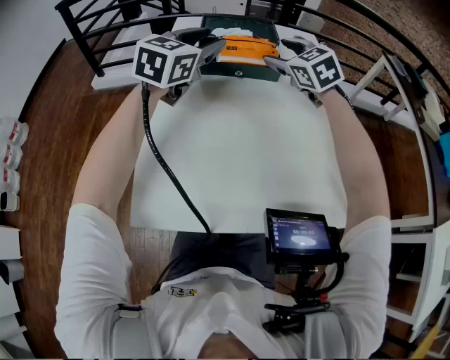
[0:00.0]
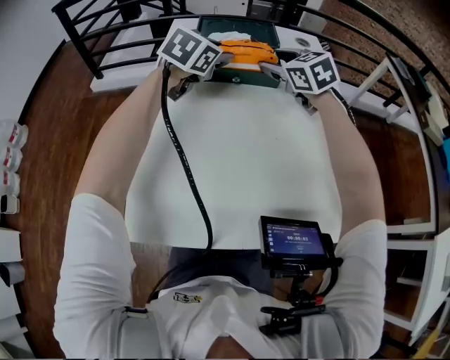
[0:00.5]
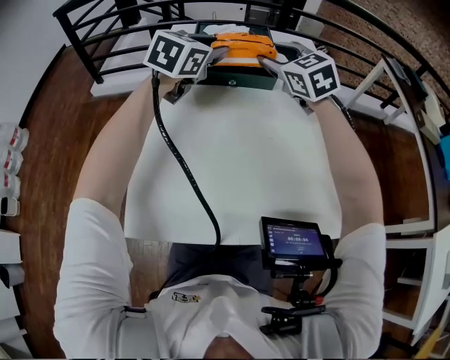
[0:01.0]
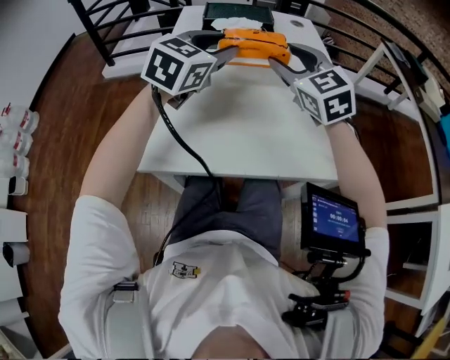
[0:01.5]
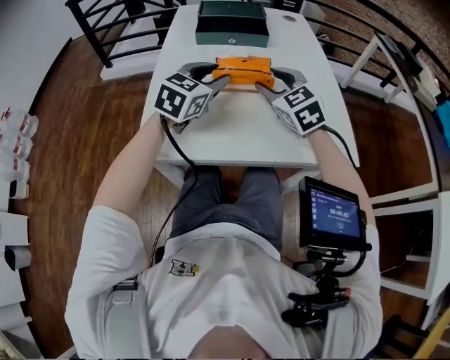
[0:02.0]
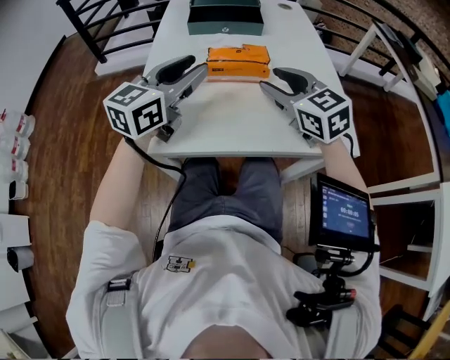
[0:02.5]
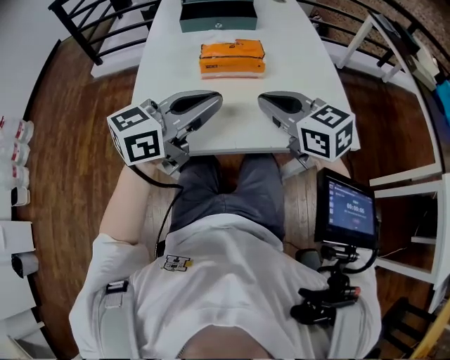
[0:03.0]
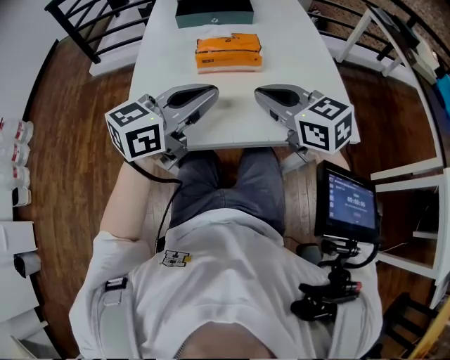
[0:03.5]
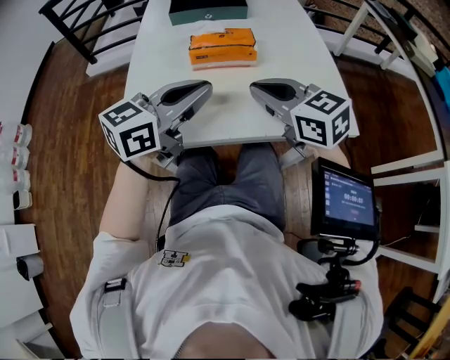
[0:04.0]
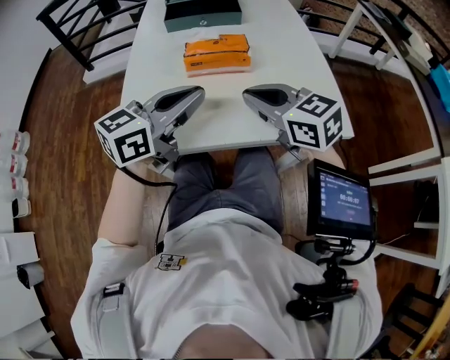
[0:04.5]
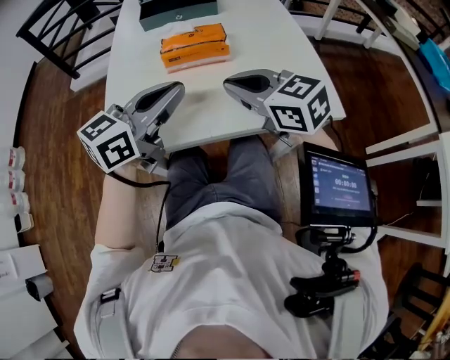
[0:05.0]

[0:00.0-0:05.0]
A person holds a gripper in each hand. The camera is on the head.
0:00.0 to 0:02.5: Both grippers travel together backward, about 25 cm. The right gripper closes.
0:02.5 to 0:05.0: The two grippers go roughly 5 cm backward. The right gripper closes up. The left gripper closes its fingers.

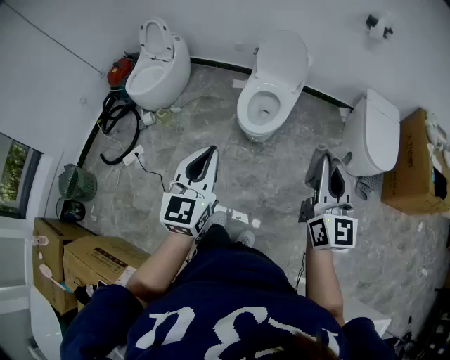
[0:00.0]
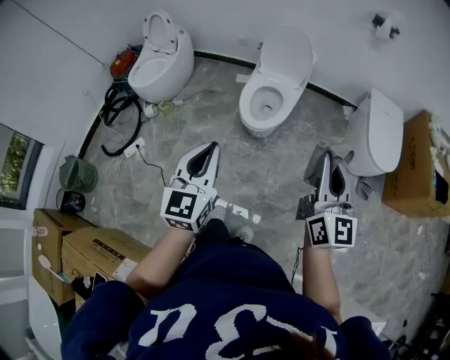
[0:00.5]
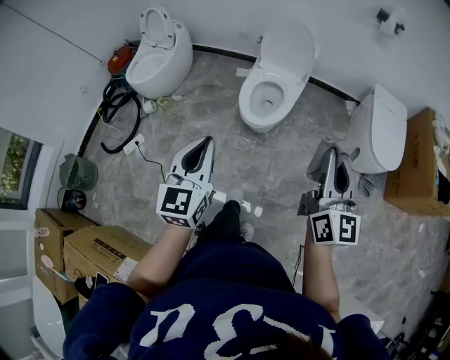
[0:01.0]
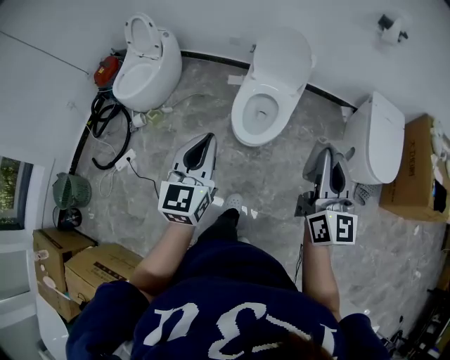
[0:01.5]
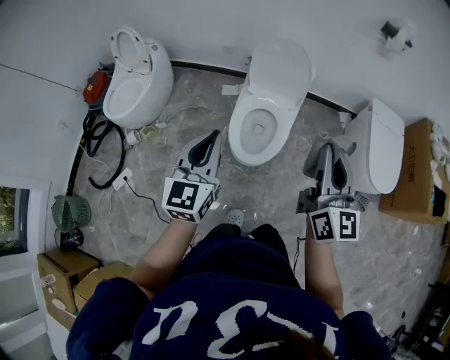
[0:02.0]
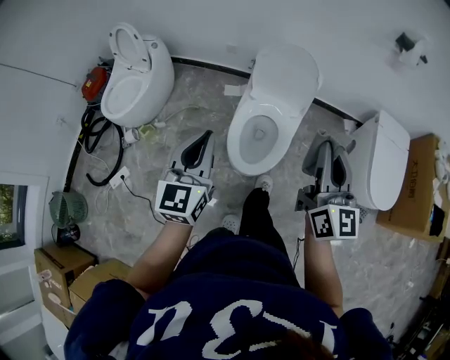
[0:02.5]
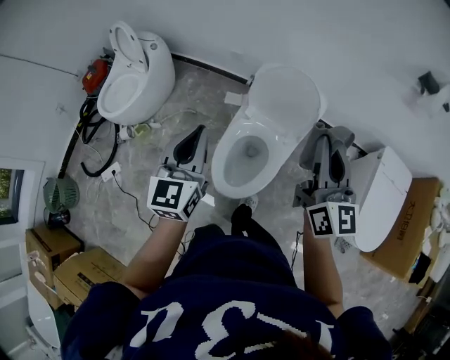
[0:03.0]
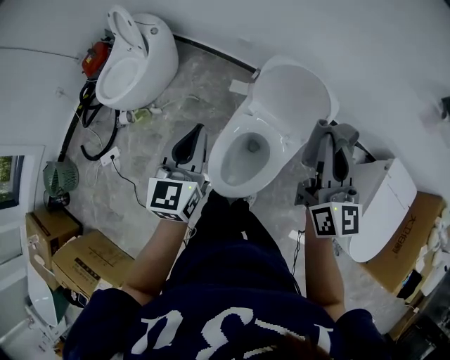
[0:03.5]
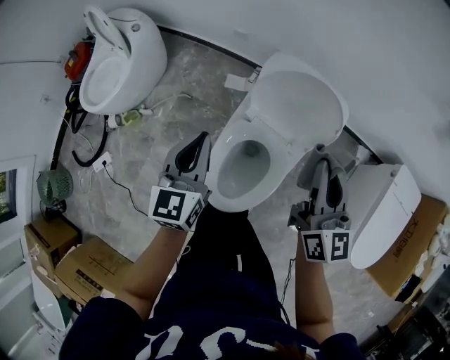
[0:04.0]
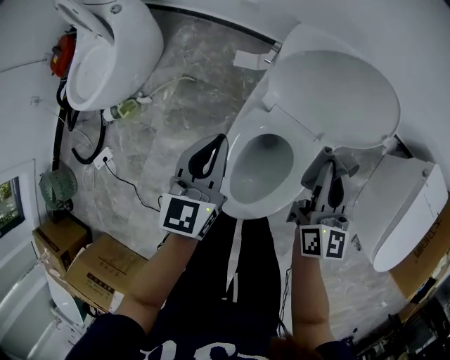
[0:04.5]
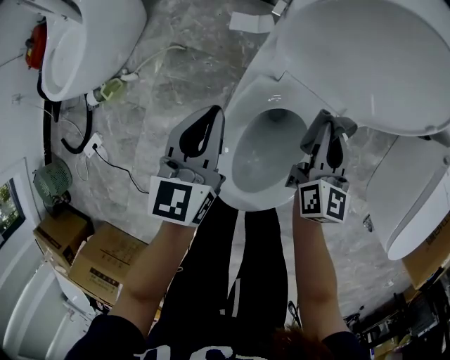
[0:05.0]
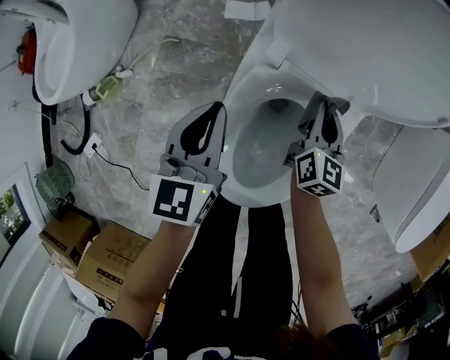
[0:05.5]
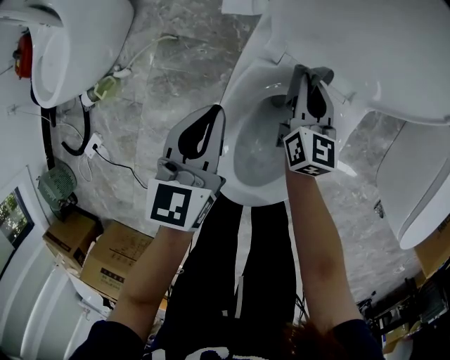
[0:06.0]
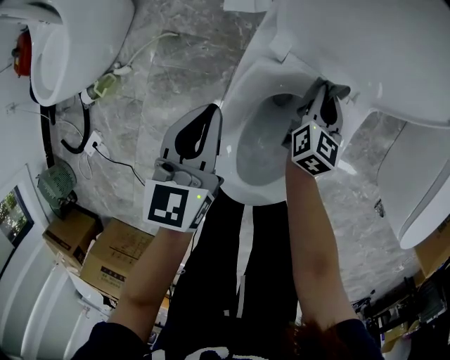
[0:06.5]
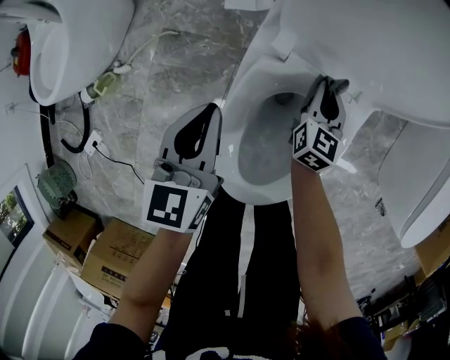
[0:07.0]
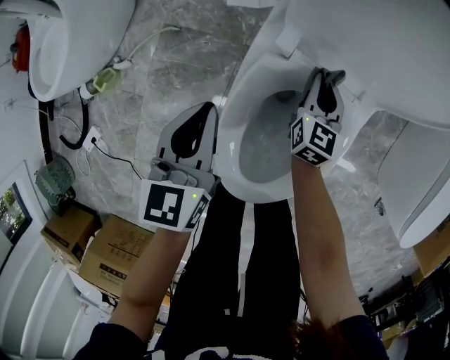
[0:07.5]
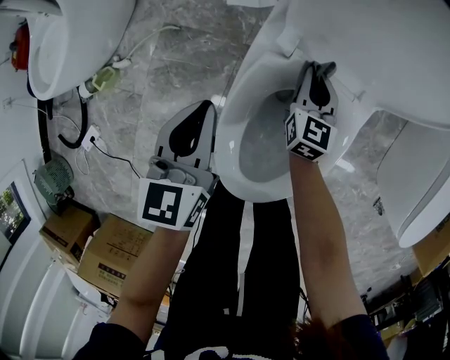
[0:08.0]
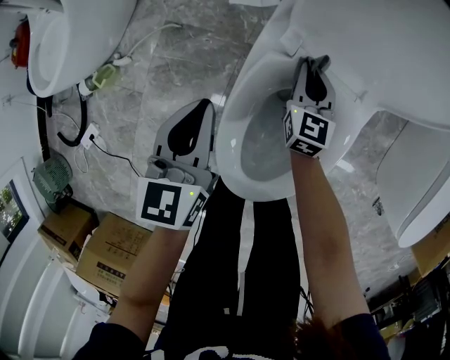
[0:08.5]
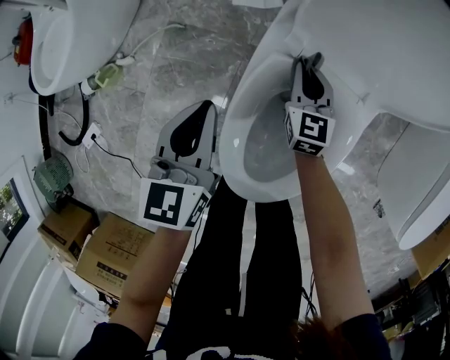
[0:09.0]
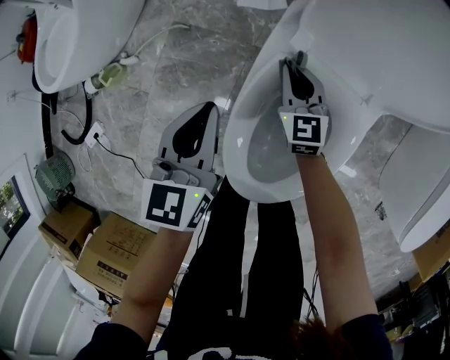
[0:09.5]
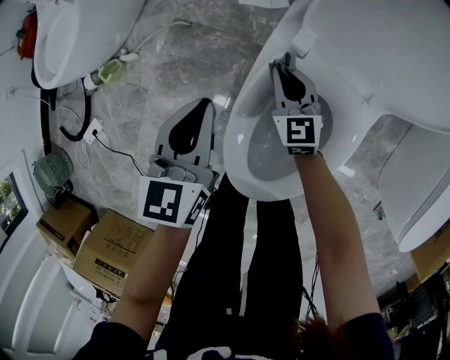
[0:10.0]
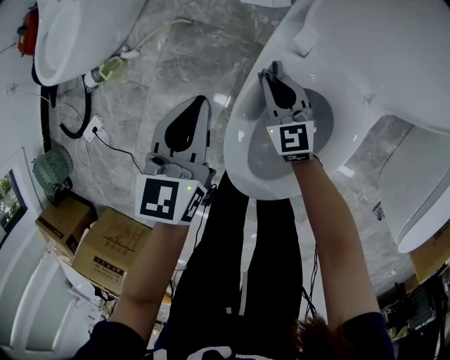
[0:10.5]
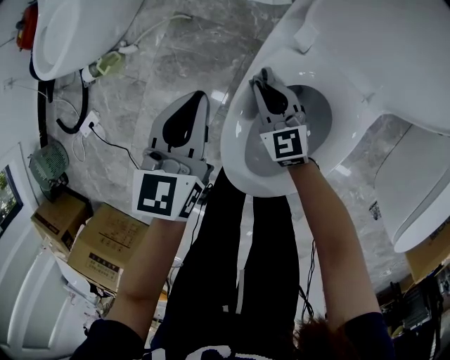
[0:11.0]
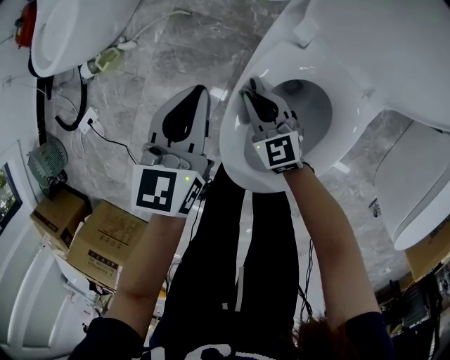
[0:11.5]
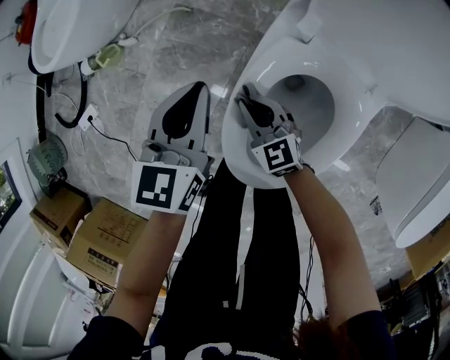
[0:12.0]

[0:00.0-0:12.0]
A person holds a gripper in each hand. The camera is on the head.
0:00.0 to 0:02.0: Both grippers move forward, approximately 35 cm.
0:02.0 to 0:04.0: The pair of grippers is taken forward, about 50 cm. The left gripper goes some 20 cm downward, and turns by roughly 20 degrees.
0:04.0 to 0:06.0: The grippers both shift downward by some 40 cm.
0:08.0 to 0:10.0: The right gripper goes roughly 10 cm to the left, and rotates approximately 30 degrees.
0:10.0 to 0:12.0: The right gripper moves backward and to the left, roughly 15 cm, and changes its angle by some 20 degrees.

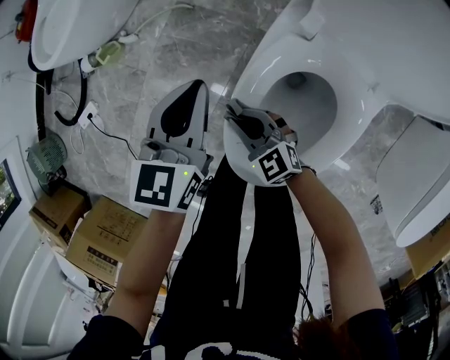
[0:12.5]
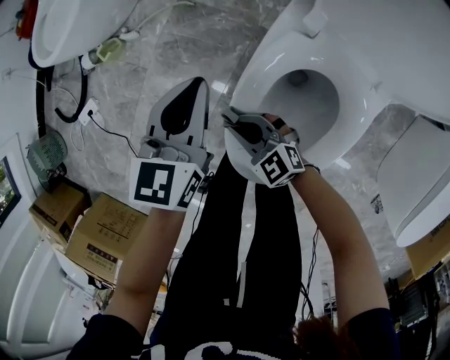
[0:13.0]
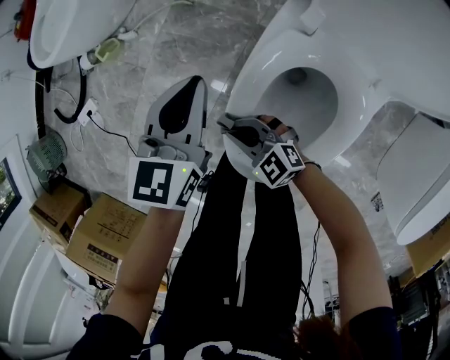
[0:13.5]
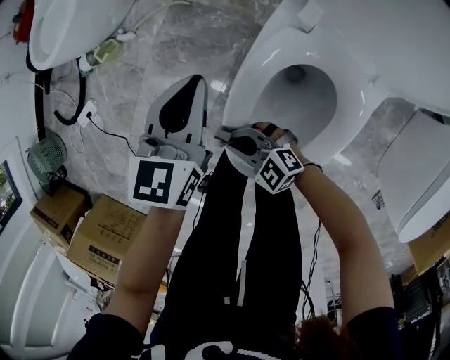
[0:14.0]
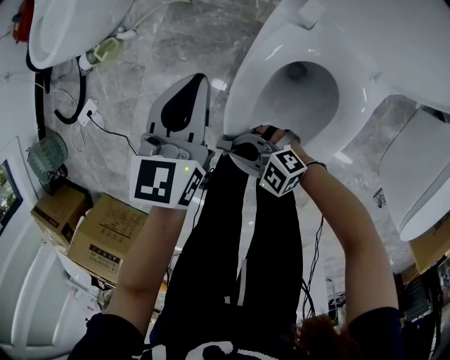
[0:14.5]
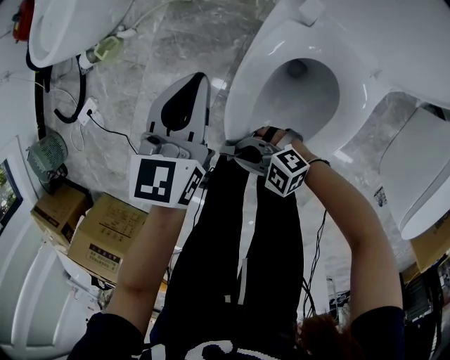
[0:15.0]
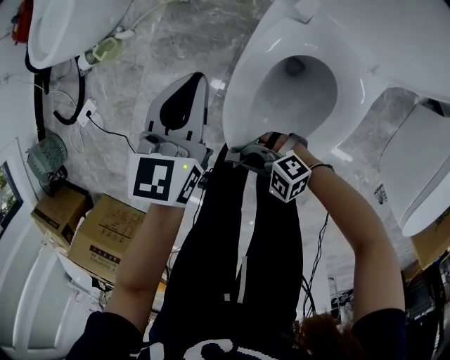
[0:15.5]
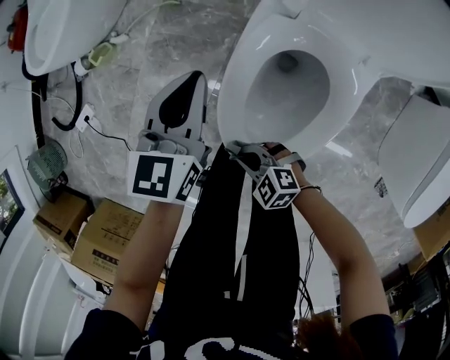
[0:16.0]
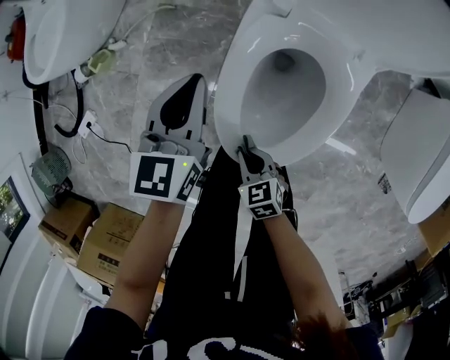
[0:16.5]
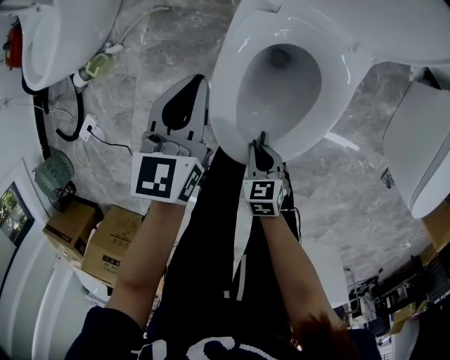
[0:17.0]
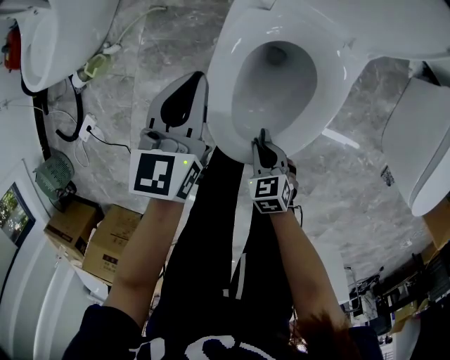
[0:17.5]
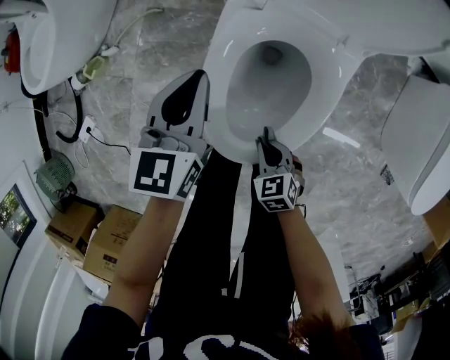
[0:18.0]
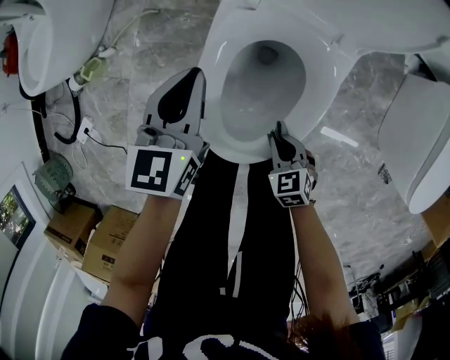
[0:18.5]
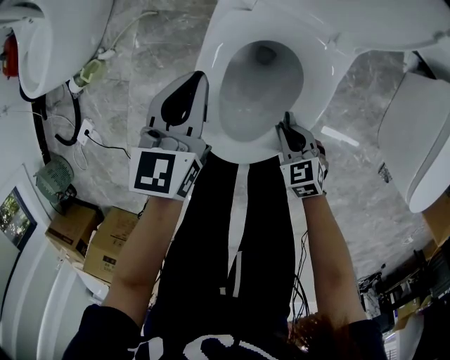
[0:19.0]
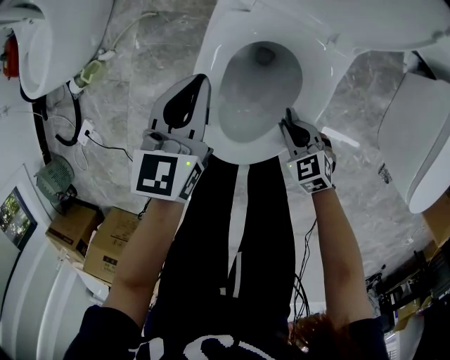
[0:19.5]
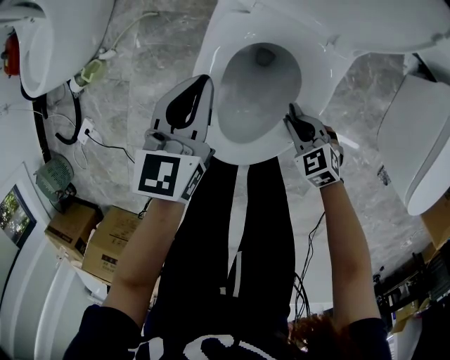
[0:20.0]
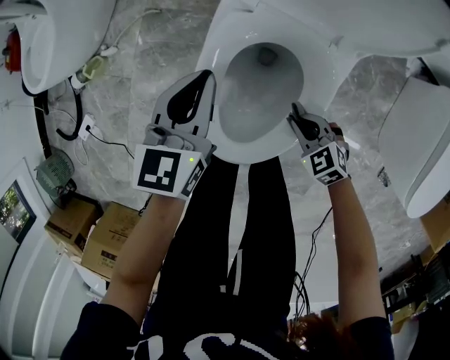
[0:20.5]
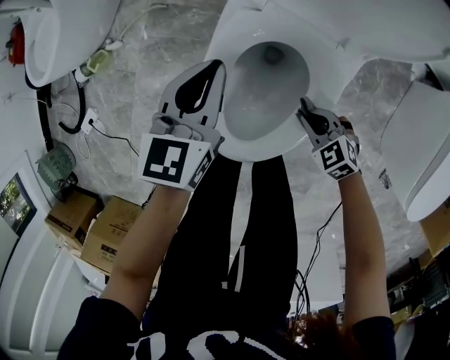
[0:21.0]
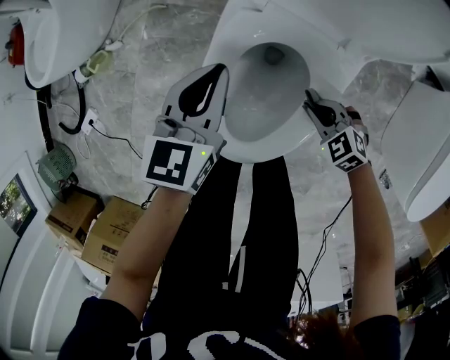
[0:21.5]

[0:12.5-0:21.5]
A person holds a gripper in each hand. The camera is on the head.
0:12.5 to 0:14.5: The right gripper is displaced backward and to the left by some 15 cm, and turns by roughly 30 degrees.
0:14.5 to 0:17.0: The left gripper shifts by some 5 cm. Meanwhile the right gripper shifts by some 10 cm, and tips its fingers downward by approximately 30 degrees.
0:17.0 to 0:19.5: The right gripper heads to the right, covering approximately 15 cm, and changes its angle by about 20 degrees. Meanwhile the left gripper is displaced to the right by some 5 cm.
0:19.5 to 0:21.5: The right gripper shifts about 5 cm to the right and forward, and swivels roughly 20 degrees.

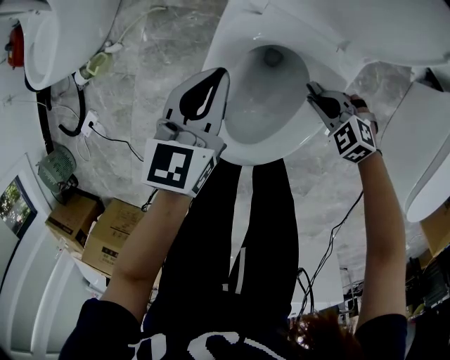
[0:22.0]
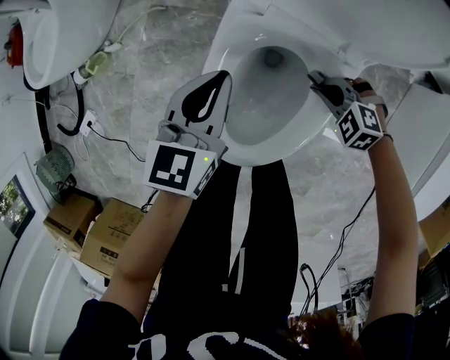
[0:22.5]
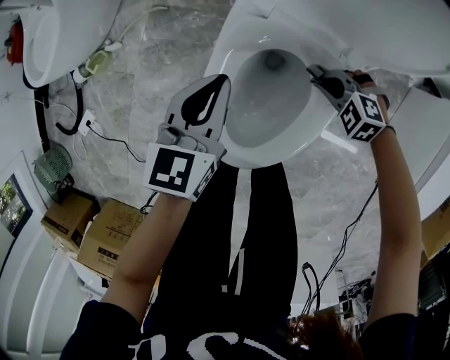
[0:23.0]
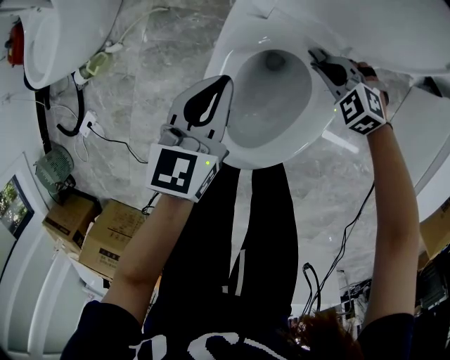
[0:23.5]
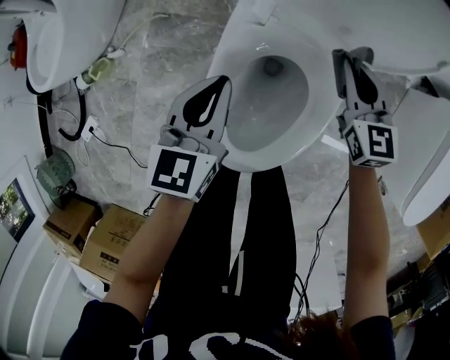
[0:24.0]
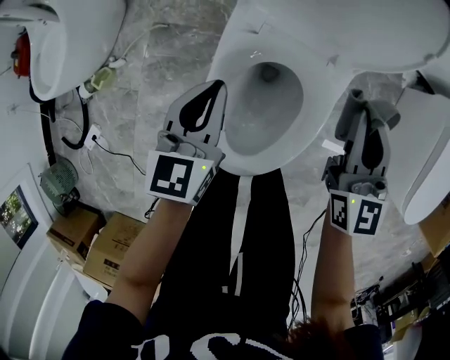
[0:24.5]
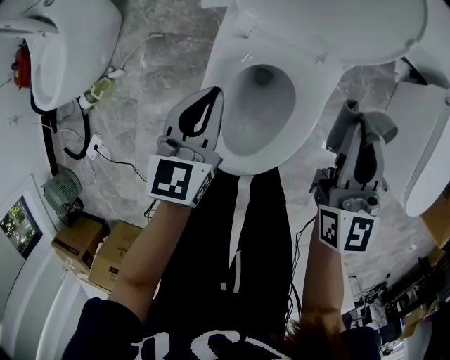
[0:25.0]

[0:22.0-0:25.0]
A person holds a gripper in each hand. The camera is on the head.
0:22.0 to 0:23.5: The right gripper travels forward by approximately 10 cm.
0:23.5 to 0:25.0: The right gripper shifts roughly 30 cm upward, and points its fingers about 50 degrees further upward. Meanwhile the left gripper goes about 5 cm upward.
